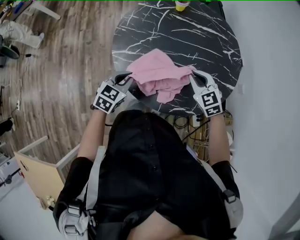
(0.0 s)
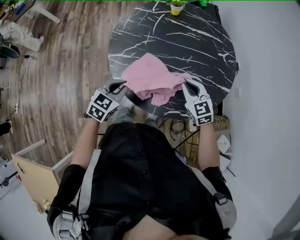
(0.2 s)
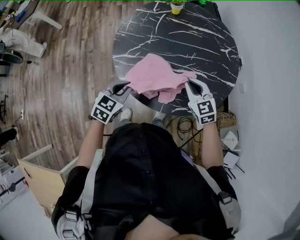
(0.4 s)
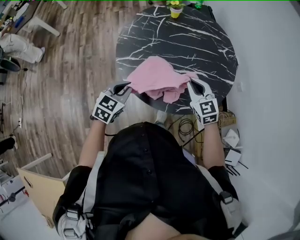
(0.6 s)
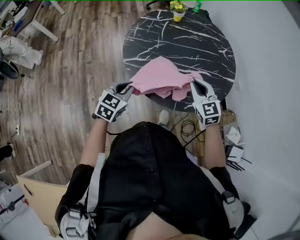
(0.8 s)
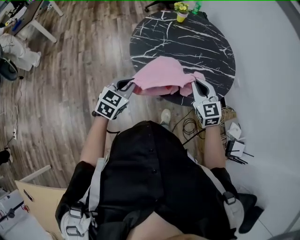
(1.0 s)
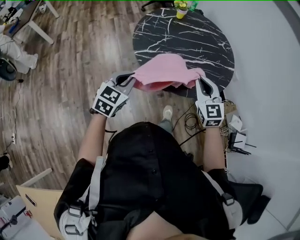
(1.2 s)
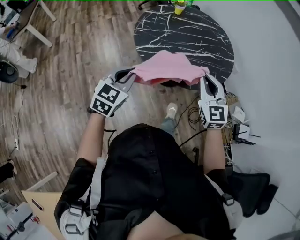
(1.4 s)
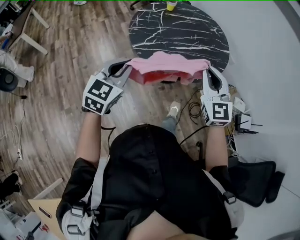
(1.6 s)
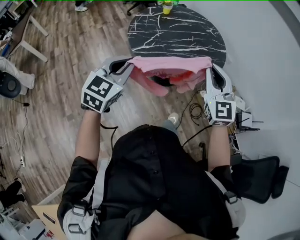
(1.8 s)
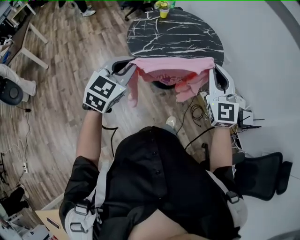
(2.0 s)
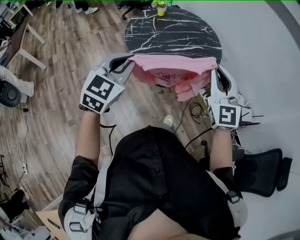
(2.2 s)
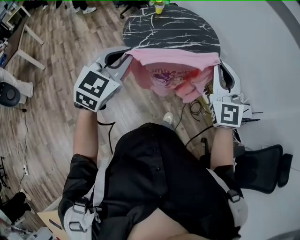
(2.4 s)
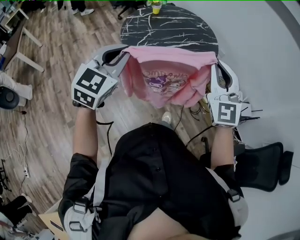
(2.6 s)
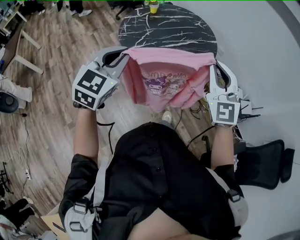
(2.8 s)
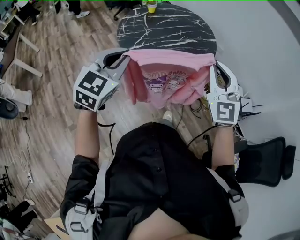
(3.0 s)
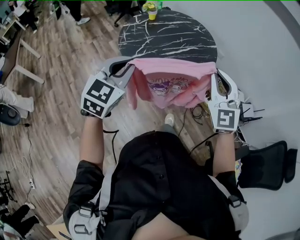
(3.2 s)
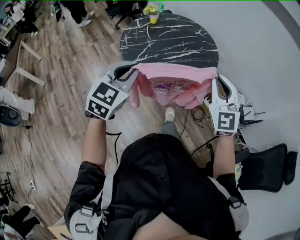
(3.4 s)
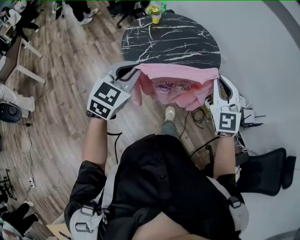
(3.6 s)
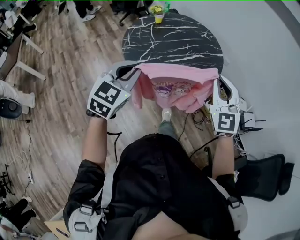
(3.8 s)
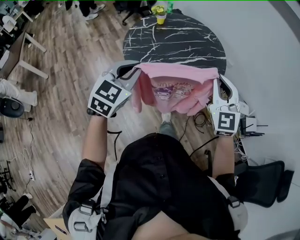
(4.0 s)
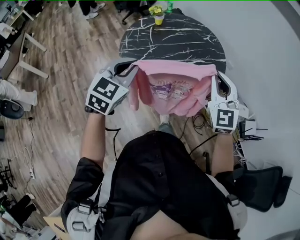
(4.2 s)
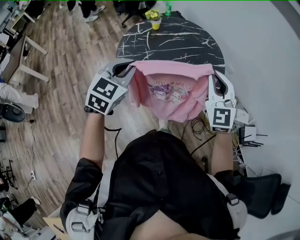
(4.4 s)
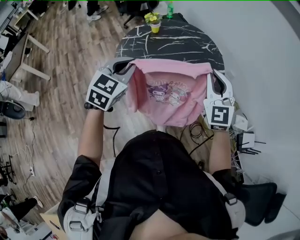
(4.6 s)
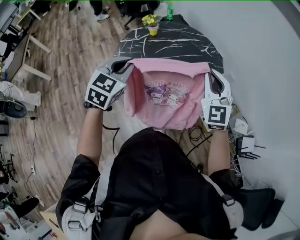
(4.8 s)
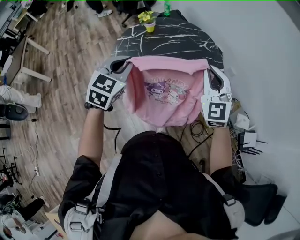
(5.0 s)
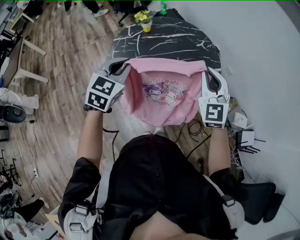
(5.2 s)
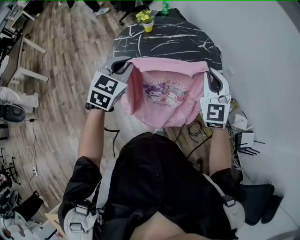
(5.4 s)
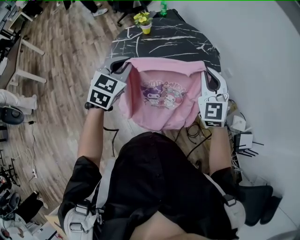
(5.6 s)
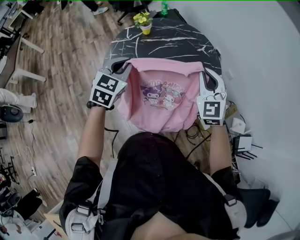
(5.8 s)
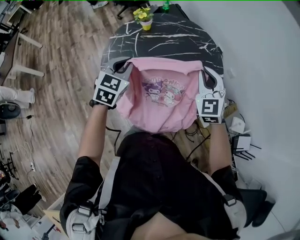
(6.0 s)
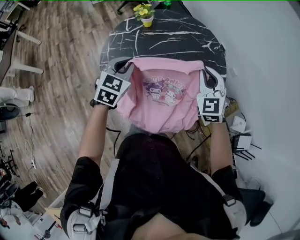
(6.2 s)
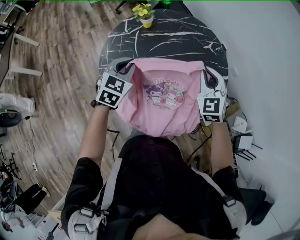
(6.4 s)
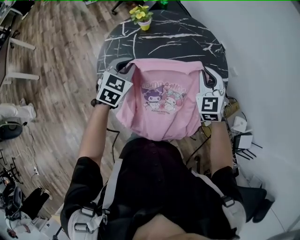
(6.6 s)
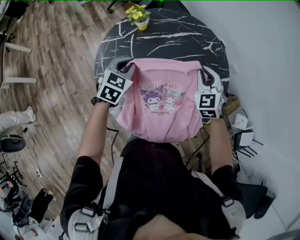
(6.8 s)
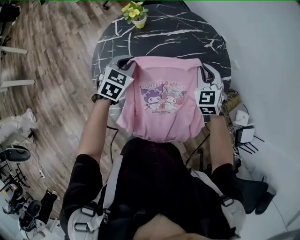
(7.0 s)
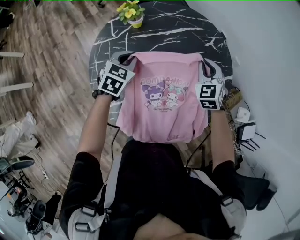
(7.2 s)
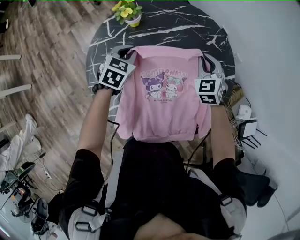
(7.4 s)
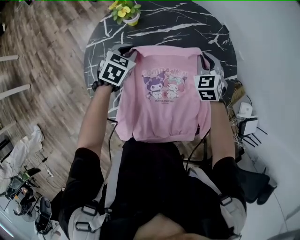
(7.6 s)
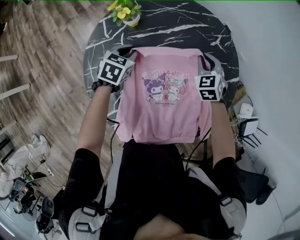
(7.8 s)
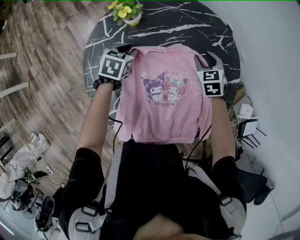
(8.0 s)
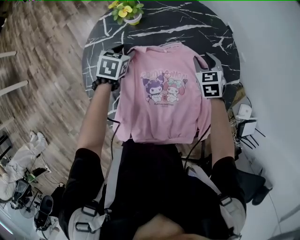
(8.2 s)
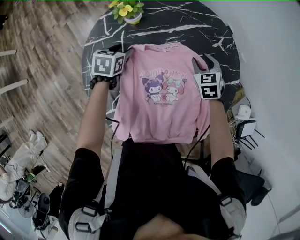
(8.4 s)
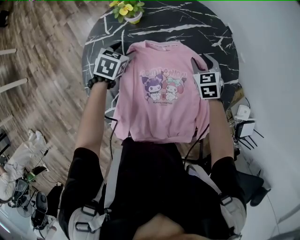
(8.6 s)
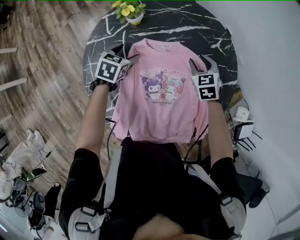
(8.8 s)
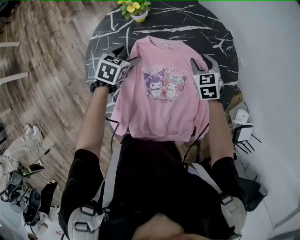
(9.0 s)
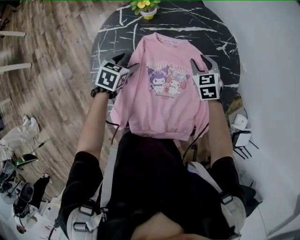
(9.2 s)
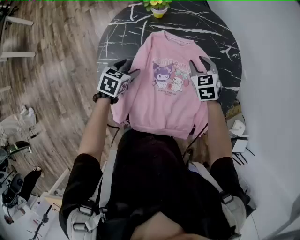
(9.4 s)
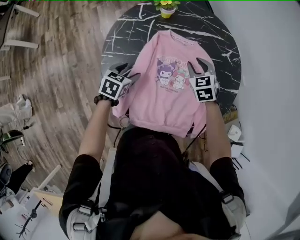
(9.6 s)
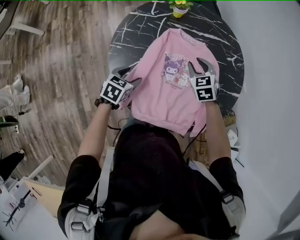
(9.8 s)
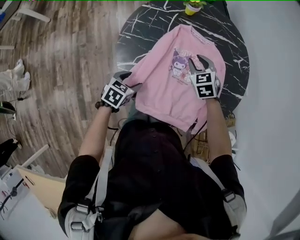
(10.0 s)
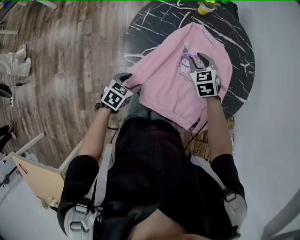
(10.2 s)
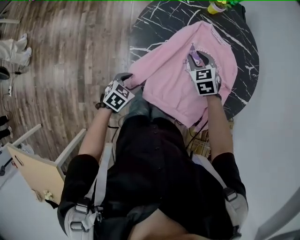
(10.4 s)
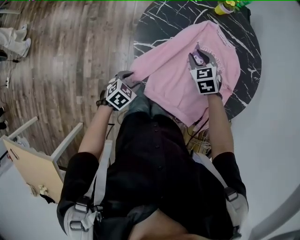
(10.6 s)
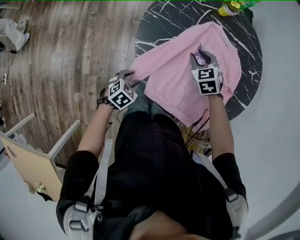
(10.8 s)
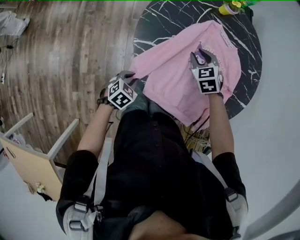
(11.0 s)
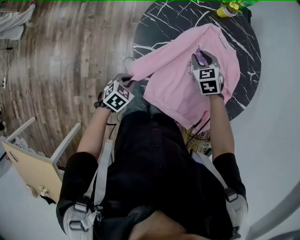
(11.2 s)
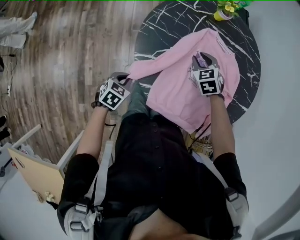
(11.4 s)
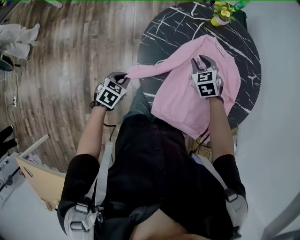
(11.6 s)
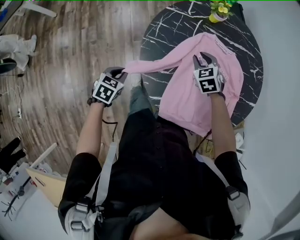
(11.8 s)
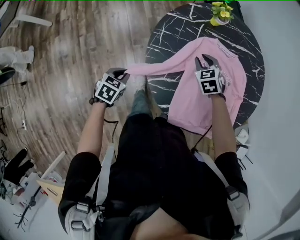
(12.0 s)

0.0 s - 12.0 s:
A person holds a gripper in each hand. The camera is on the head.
0.0 s - 1.6 s: The left gripper is displaced upward, backward and to the left by some 30 cm, and rotates approximately 30 degrees. Meanwhile the right gripper heads backward, upward and to the left, covering approximately 40 cm, and points its fingers roughly 30 degrees further upward.
1.6 s - 3.0 s: The right gripper travels upward and backward by roughly 10 cm; the left gripper travels upward by roughly 10 cm.
3.0 s - 4.4 s: Both grippers travel together forward, approximately 20 cm.
4.4 s - 6.0 s: Both grippers travel together forward and downward, roughly 20 cm.
6.0 s - 7.6 s: The right gripper shifts roughly 30 cm downward and forward, and changes its angle by about 30 degrees. The left gripper shifts roughly 30 cm forward and downward, and rotates about 20 degrees.
7.6 s - 9.0 s: The left gripper moves some 5 cm, and opens its fingers.
9.0 s - 10.4 s: The left gripper is displaced backward by about 40 cm, while the right gripper is displaced to the left and backward by roughly 25 cm, and rotates about 30 degrees.
10.4 s - 12.0 s: The right gripper travels forward and to the left by approximately 10 cm. Meanwhile the left gripper is displaced to the left and forward by roughly 25 cm, and closes.

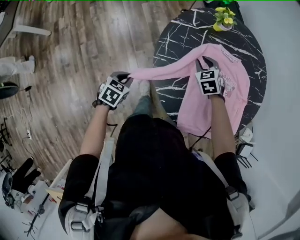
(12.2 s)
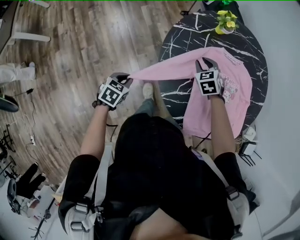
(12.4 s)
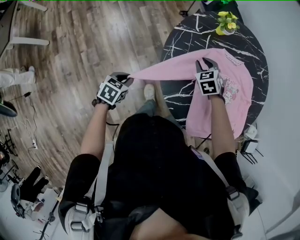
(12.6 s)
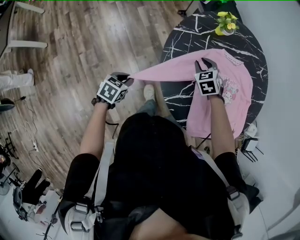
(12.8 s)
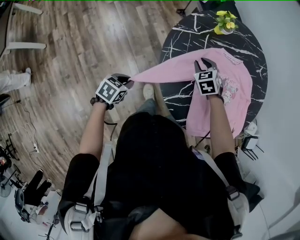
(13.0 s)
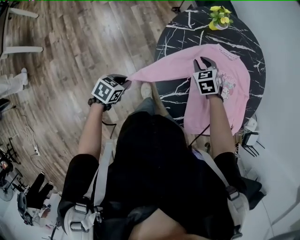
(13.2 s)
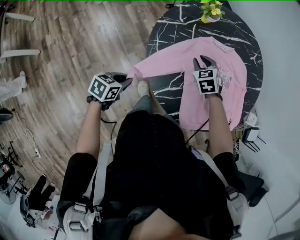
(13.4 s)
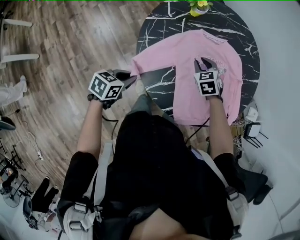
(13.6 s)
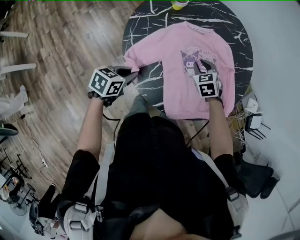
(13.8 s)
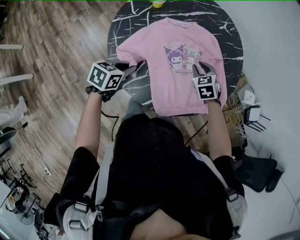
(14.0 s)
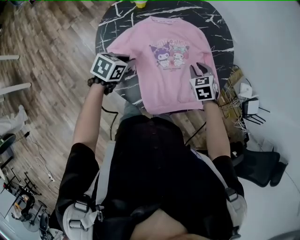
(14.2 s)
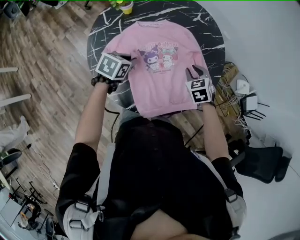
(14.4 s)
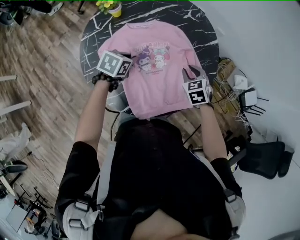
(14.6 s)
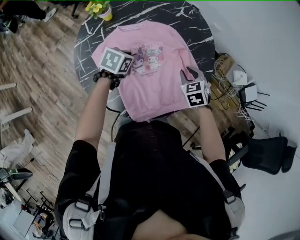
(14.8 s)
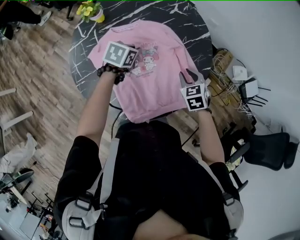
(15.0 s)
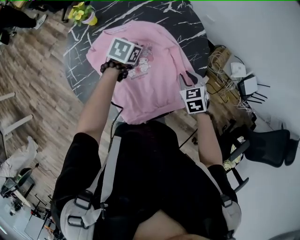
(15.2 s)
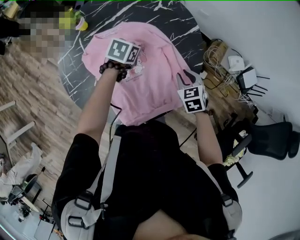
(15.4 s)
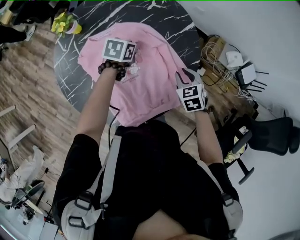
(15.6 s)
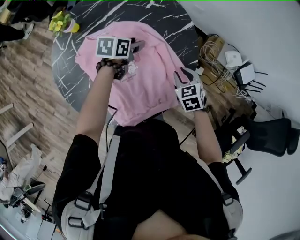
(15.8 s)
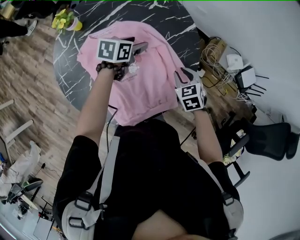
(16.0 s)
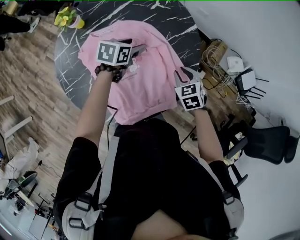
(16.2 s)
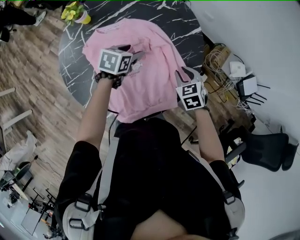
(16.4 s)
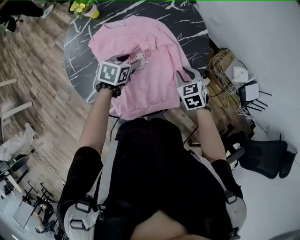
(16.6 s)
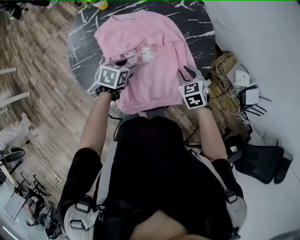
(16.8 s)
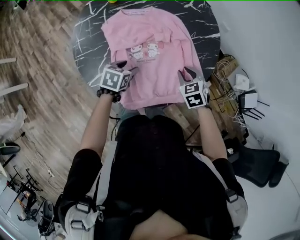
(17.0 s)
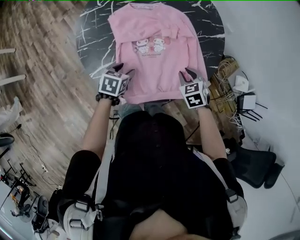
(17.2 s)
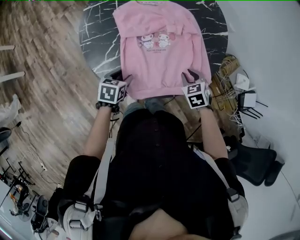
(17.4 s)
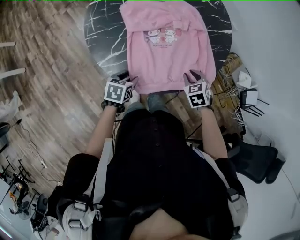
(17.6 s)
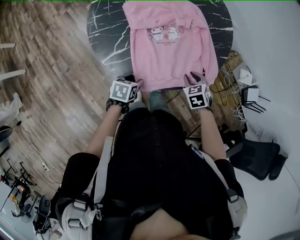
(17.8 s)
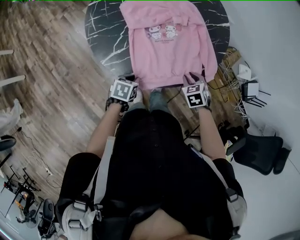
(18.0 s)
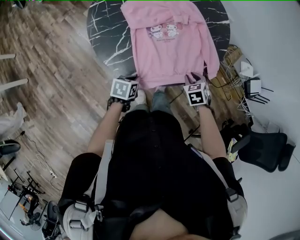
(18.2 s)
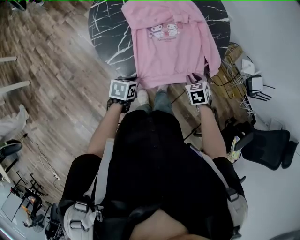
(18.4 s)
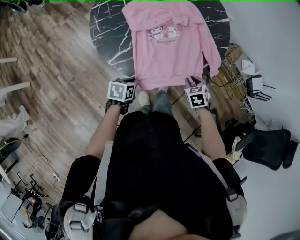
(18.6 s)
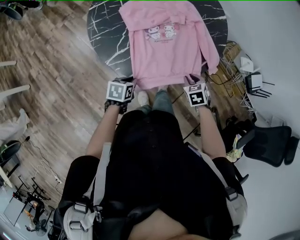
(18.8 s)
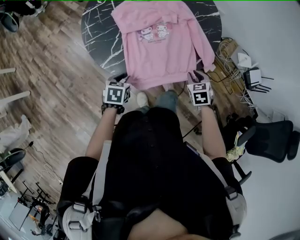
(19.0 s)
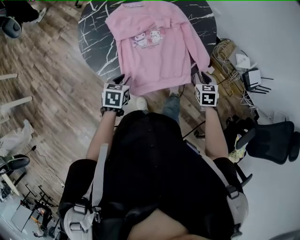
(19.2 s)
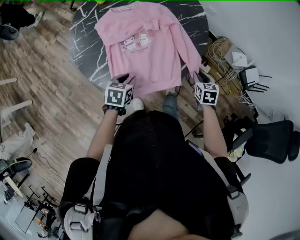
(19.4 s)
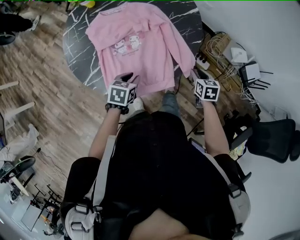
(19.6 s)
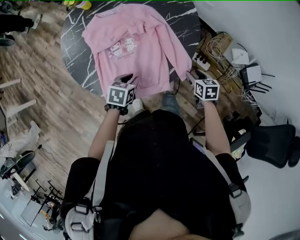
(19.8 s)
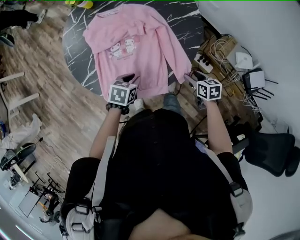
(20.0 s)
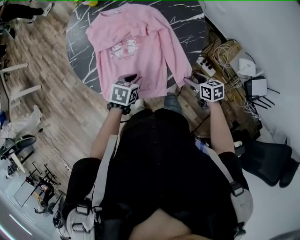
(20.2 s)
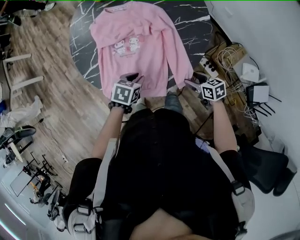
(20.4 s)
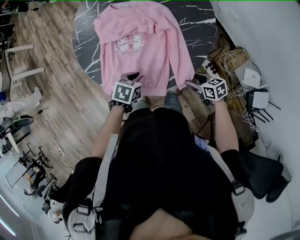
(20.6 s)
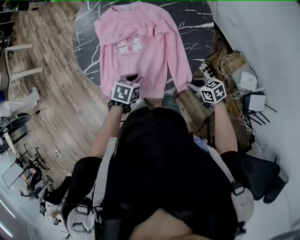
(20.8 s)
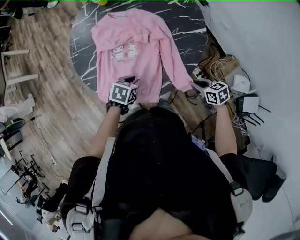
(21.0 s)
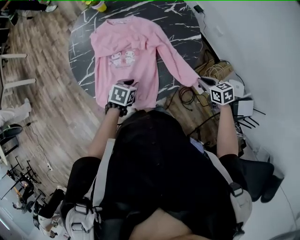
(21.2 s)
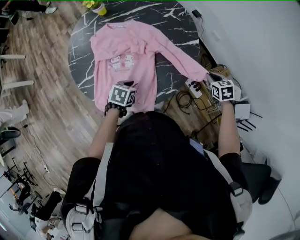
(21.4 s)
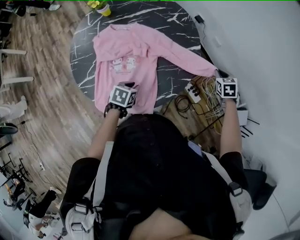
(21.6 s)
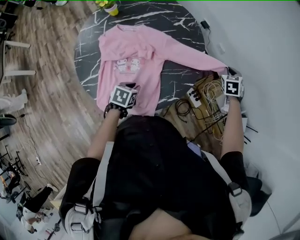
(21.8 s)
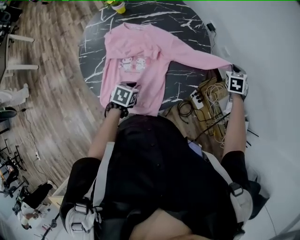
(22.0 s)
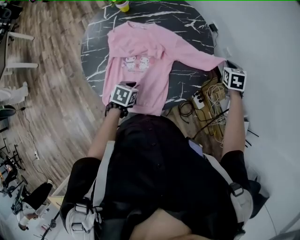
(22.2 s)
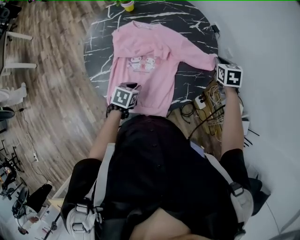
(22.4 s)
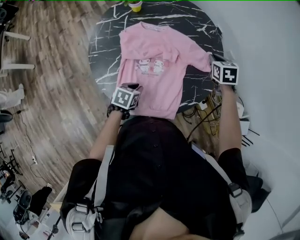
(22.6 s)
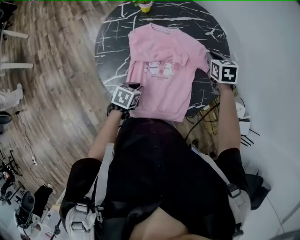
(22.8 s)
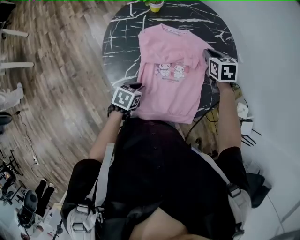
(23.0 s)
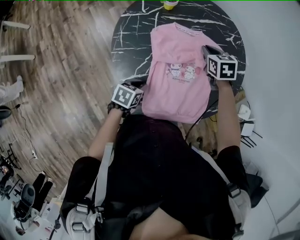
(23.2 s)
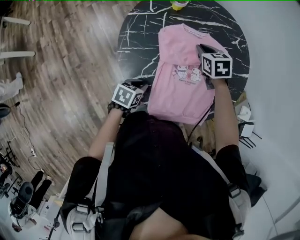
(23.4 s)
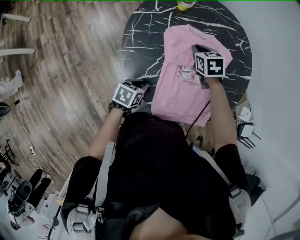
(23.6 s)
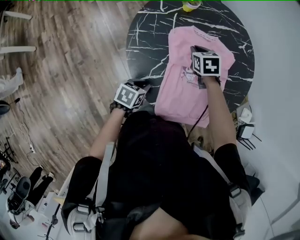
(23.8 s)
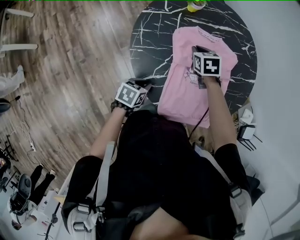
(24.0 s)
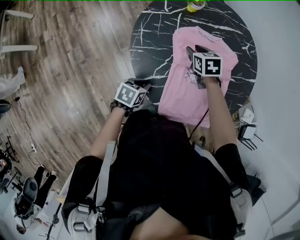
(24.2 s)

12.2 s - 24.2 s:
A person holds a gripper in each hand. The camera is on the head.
12.2 s - 13.8 s: The right gripper heads to the right, covering about 15 cm, while the left gripper heads to the right, forward and upward, covering approximately 15 cm, and turns by about 30 degrees.
13.8 s - 15.2 s: The right gripper travels to the right by some 25 cm, and swivels some 20 degrees. Meanwhile the left gripper shifts approximately 40 cm forward and to the right.
15.2 s - 16.6 s: The left gripper travels backward by roughly 10 cm, and opens its fingers.
16.6 s - 18.2 s: The right gripper goes approximately 20 cm backward. Meanwhile the left gripper is displaced backward by approximately 30 cm, and closes.
18.2 s - 19.8 s: The left gripper moves forward, to the right and upward, approximately 20 cm. Meanwhile the right gripper shifts some 20 cm to the right and forward, and rotates roughly 30 degrees.
19.8 s - 21.2 s: The right gripper shifts by some 15 cm, turns by roughly 30 degrees, and closes up, while the left gripper shifts by approximately 5 cm.
21.2 s - 22.6 s: The right gripper changes place by about 25 cm, and turns by roughly 30 degrees. The left gripper changes place by approximately 10 cm.
22.6 s - 24.2 s: The left gripper moves to the left, approximately 20 cm, while the right gripper is displaced to the left by approximately 35 cm.
